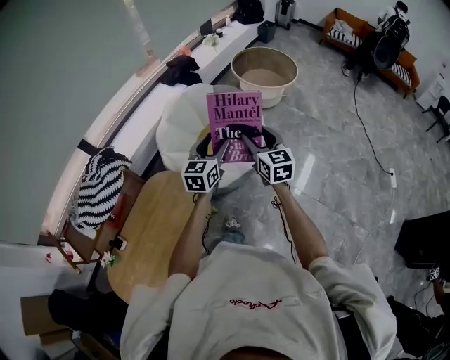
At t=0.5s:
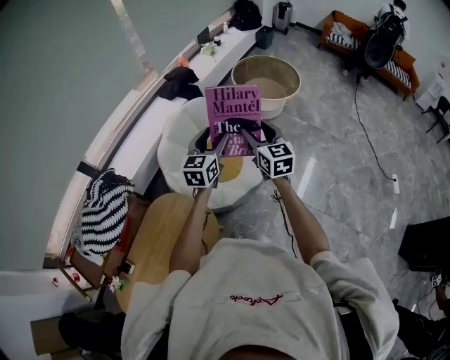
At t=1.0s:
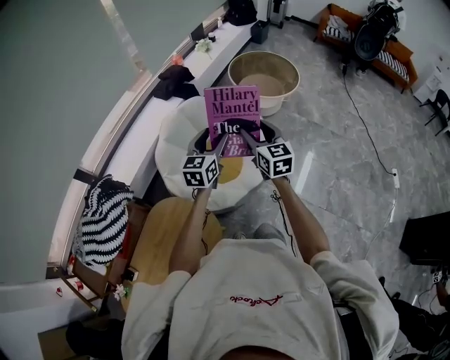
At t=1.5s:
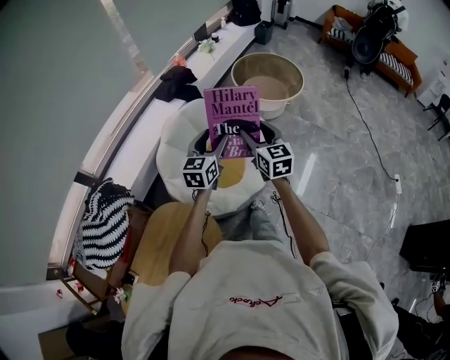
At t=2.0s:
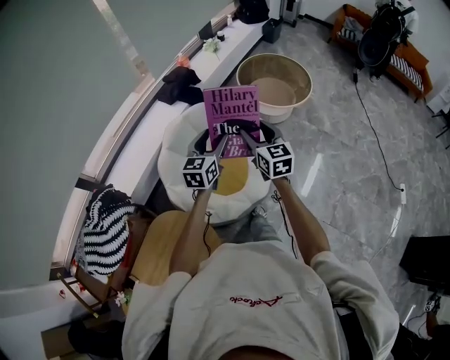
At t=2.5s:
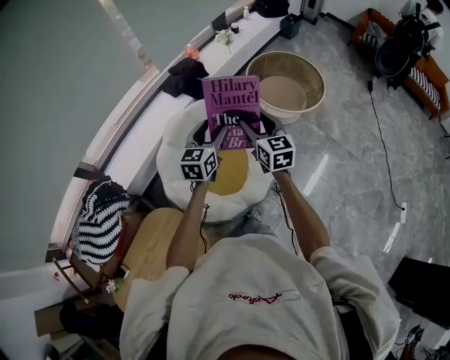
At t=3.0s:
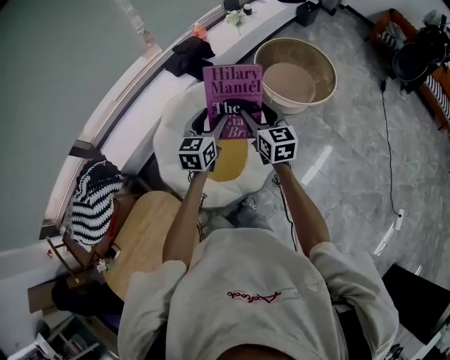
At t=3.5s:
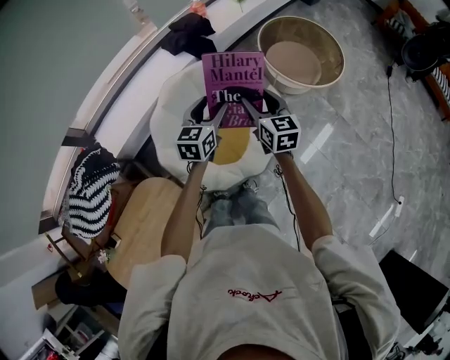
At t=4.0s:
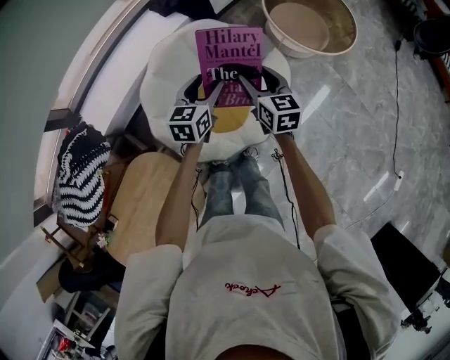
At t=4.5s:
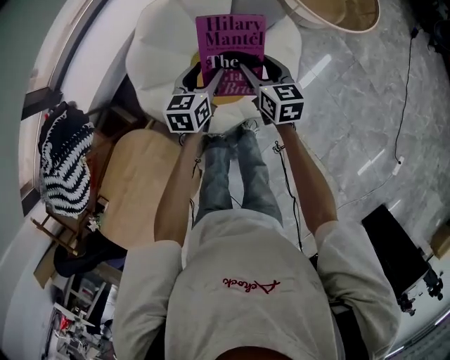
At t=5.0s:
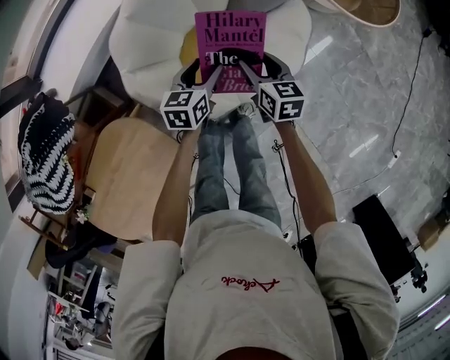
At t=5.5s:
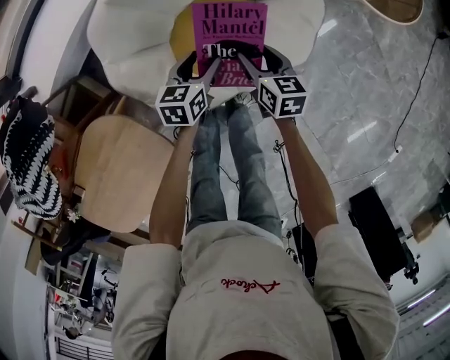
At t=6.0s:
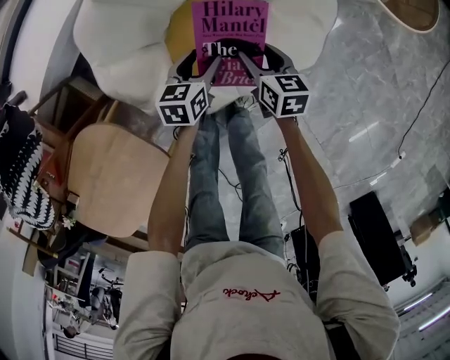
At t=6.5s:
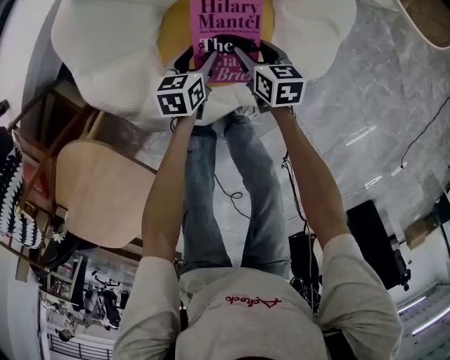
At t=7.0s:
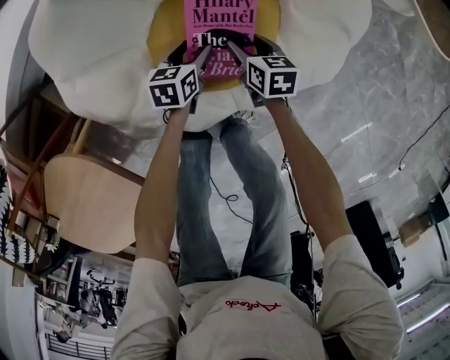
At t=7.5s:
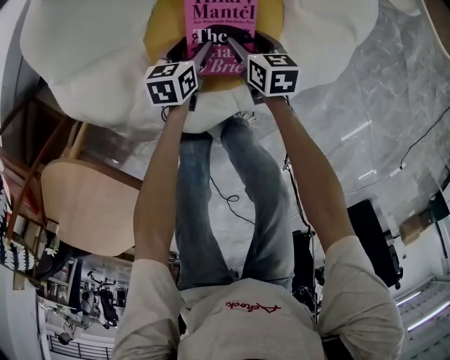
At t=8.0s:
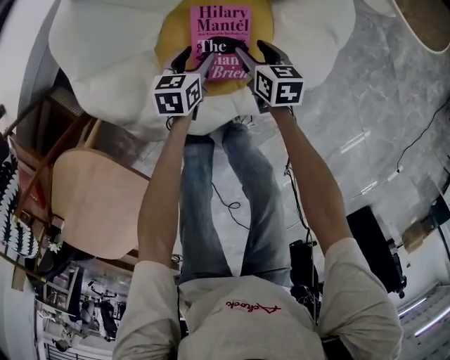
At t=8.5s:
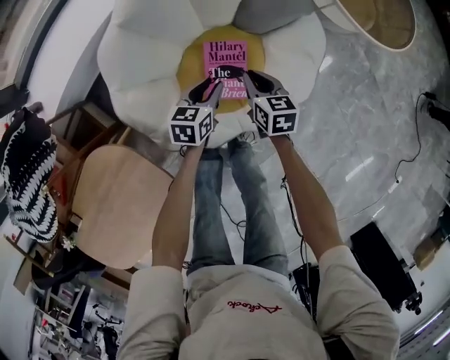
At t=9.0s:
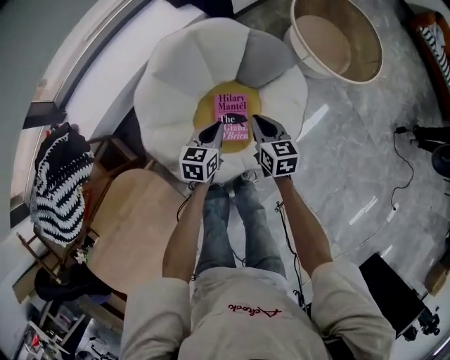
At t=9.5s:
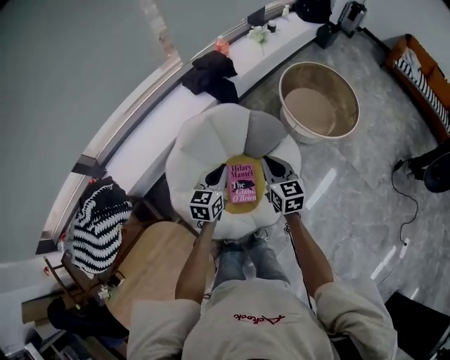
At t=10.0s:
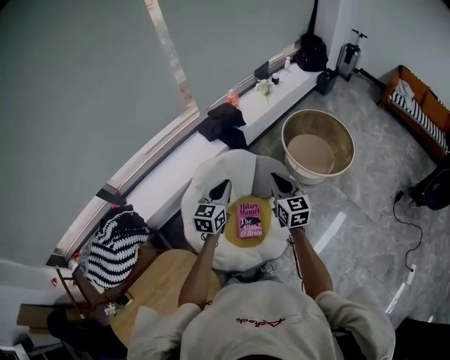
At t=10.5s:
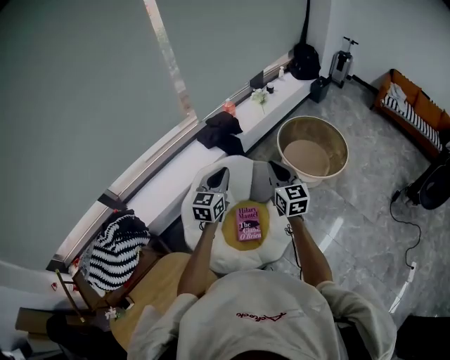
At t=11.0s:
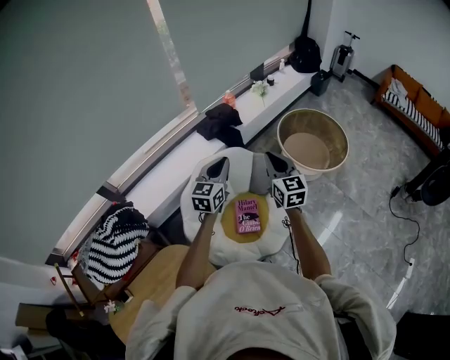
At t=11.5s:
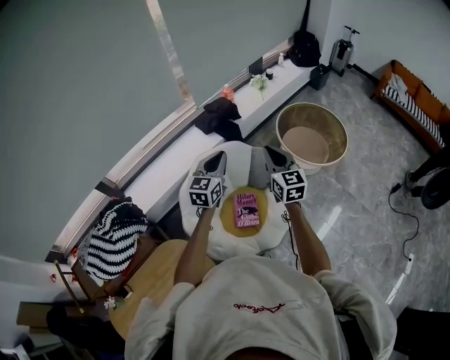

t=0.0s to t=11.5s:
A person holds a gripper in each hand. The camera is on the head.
t=0.0s to t=2.0s: Both grippers travel together forward, roughly 30 cm.
t=2.0s to t=4.0s: Both grippers move downward and forward, some 20 cm.
t=4.0s to t=6.0s: The two grippers go some 40 cm downward. The left gripper rotates roughly 30 degrees. Meanwhile the right gripper swivels approximately 30 degrees.
t=6.0s to t=7.5s: Both grippers move downward, approximately 20 cm.
t=7.5s to t=9.5s: Both grippers move upward, about 60 cm. The right gripper turns by approximately 40 degrees, and closes. The left gripper rotates about 40 degrees, and closes its fingers.
t=9.5s to t=11.5s: Both grippers travel together upward, approximately 20 cm.

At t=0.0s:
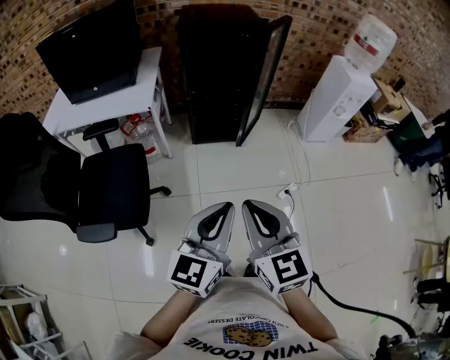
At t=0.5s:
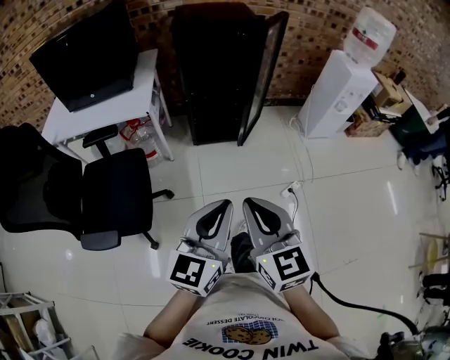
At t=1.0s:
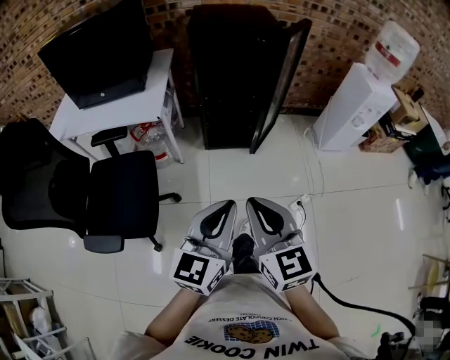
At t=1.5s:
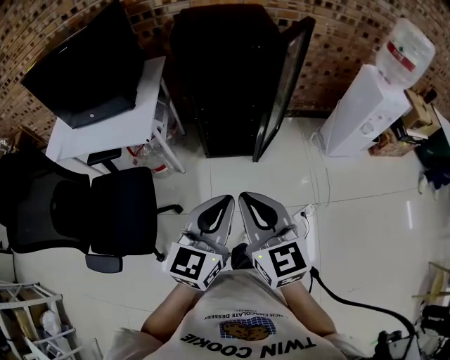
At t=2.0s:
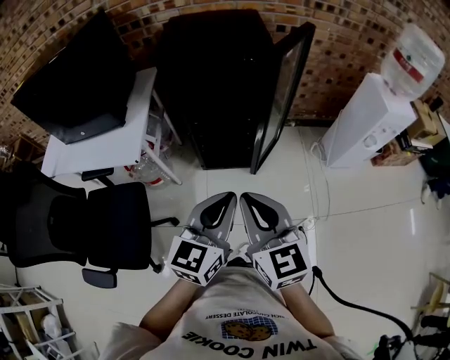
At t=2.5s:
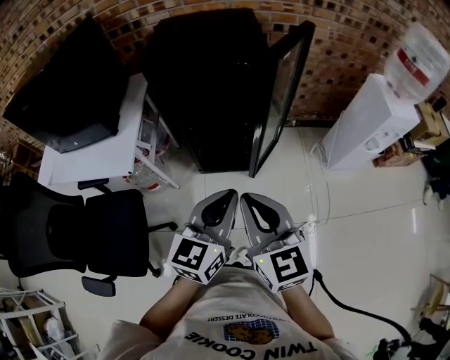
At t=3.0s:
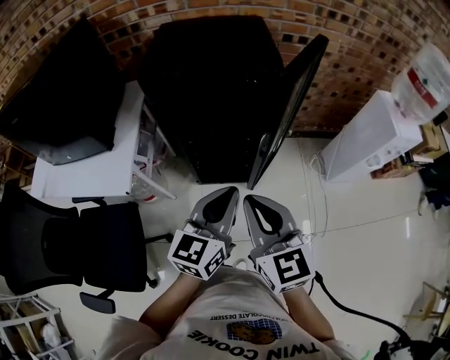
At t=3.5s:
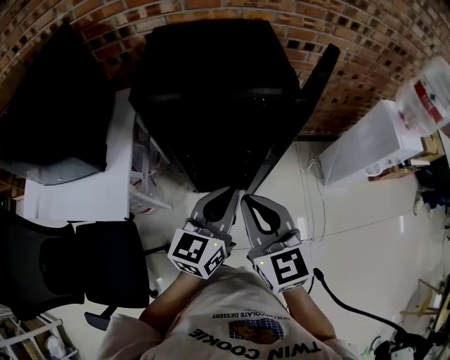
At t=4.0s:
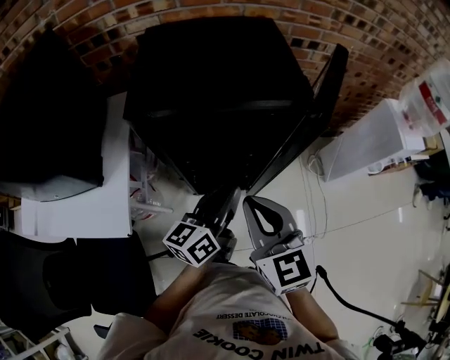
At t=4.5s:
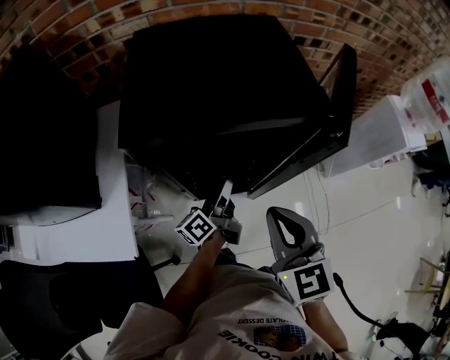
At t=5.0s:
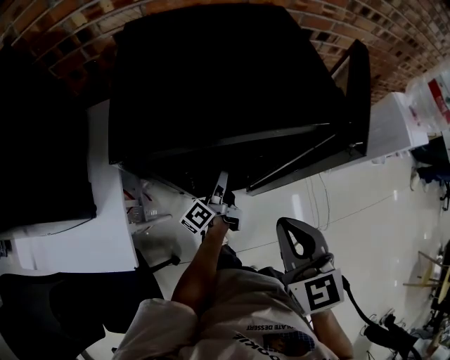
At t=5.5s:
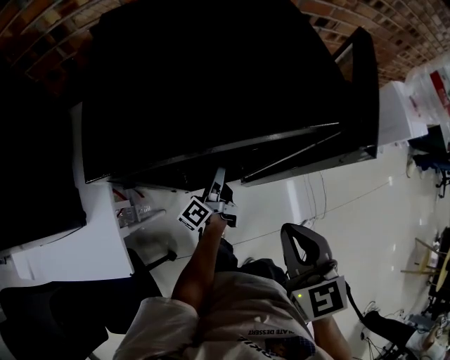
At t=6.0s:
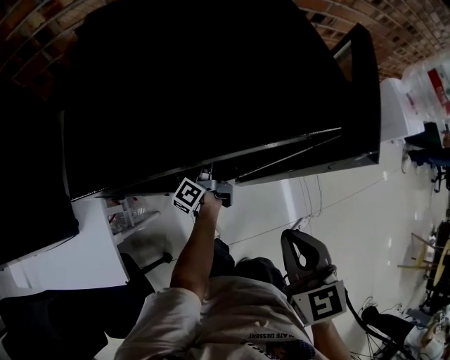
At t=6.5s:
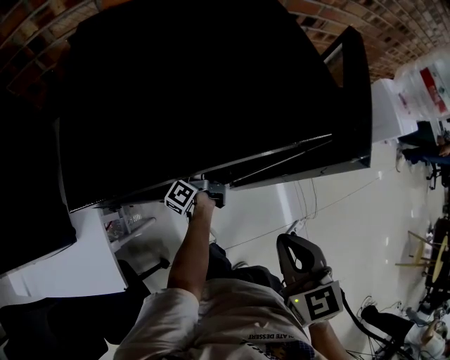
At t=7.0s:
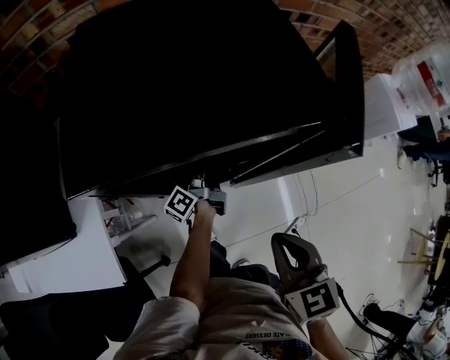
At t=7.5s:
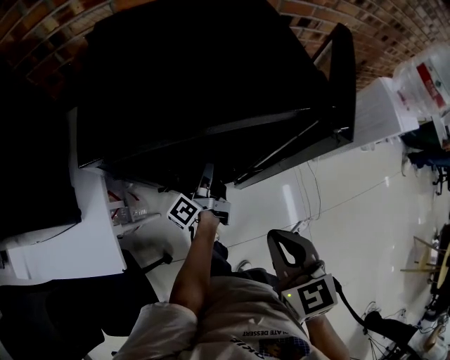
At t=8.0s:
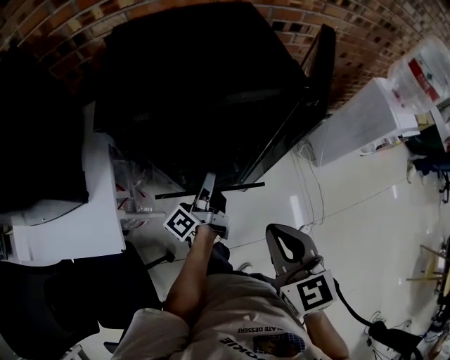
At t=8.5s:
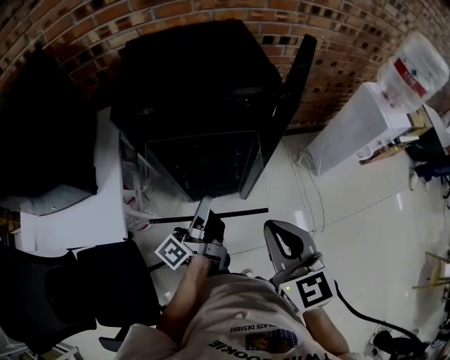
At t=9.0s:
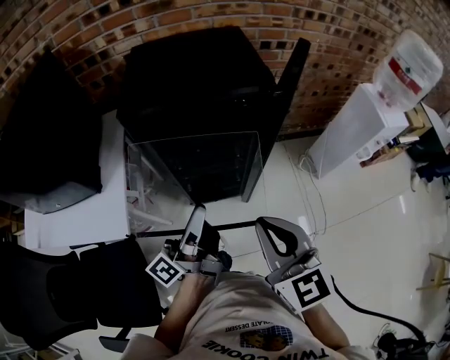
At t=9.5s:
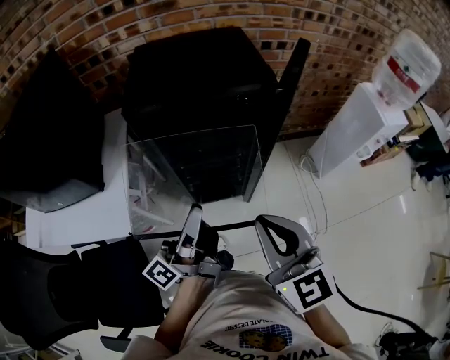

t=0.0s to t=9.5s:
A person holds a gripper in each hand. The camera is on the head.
t=0.0s to t=2.0s: The grippers both shift forward by about 30 cm.
t=2.0s to t=4.0s: The two grippers go about 25 cm forward. The left gripper turns by roughly 30 degrees.
t=4.0s to t=5.5s: The right gripper is displaced downward by some 5 cm. The left gripper is displaced downward and forward by approximately 25 cm, twists roughly 40 degrees counterclockwise, seen from behind, and opens its fingers.
t=5.5s to t=7.5s: The left gripper is displaced upward by roughly 5 cm, and closes its fingers.
t=7.5s to t=9.5s: The right gripper heads upward and backward, covering some 15 cm, and turns by roughly 20 degrees, while the left gripper travels backward and upward by some 35 cm, and rotates some 20 degrees.

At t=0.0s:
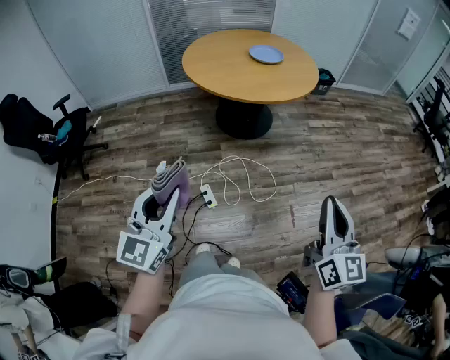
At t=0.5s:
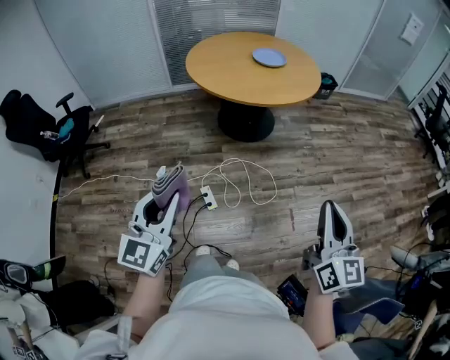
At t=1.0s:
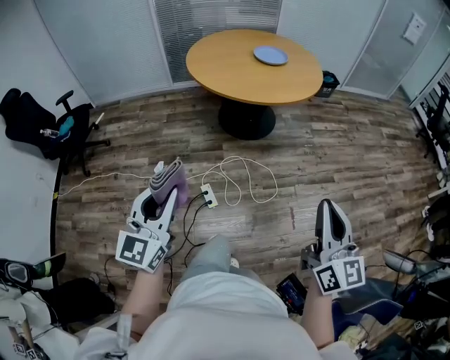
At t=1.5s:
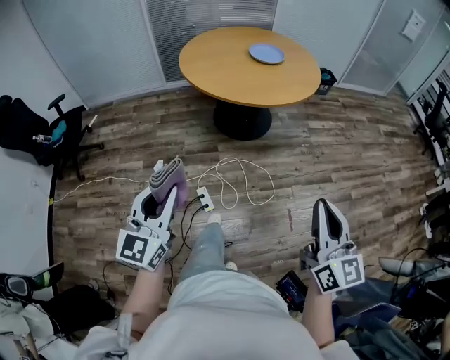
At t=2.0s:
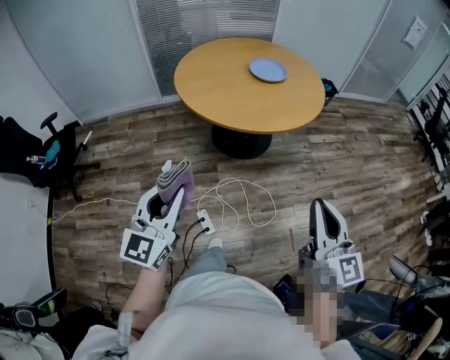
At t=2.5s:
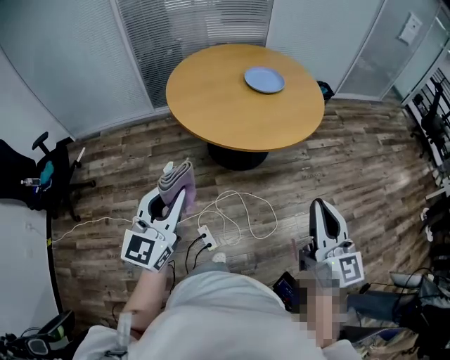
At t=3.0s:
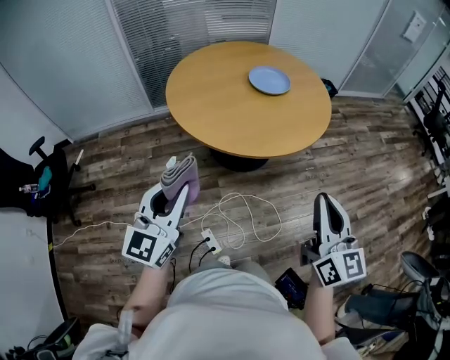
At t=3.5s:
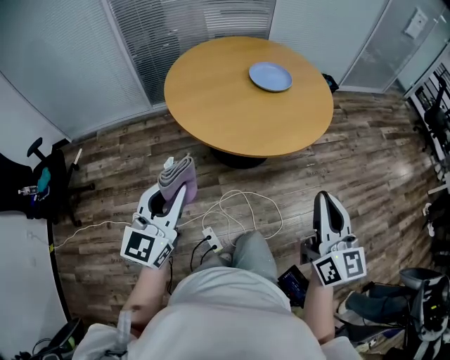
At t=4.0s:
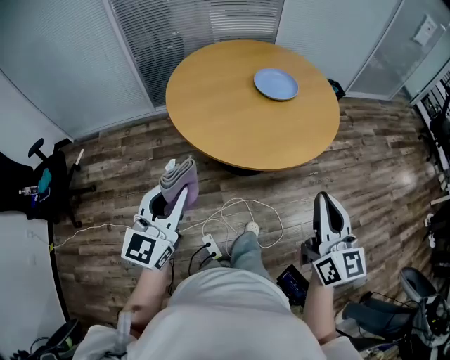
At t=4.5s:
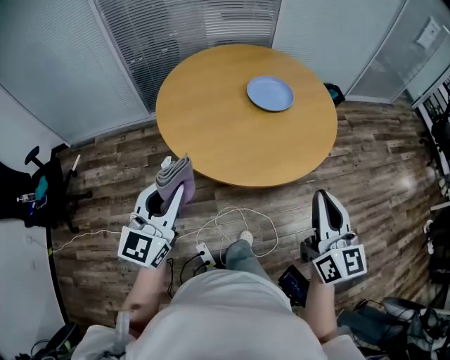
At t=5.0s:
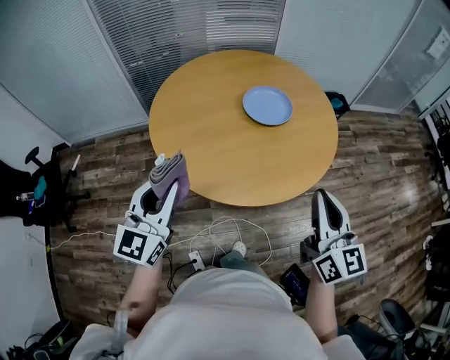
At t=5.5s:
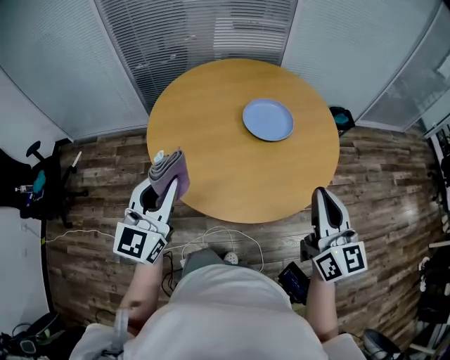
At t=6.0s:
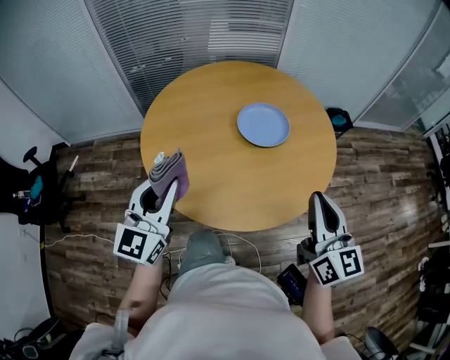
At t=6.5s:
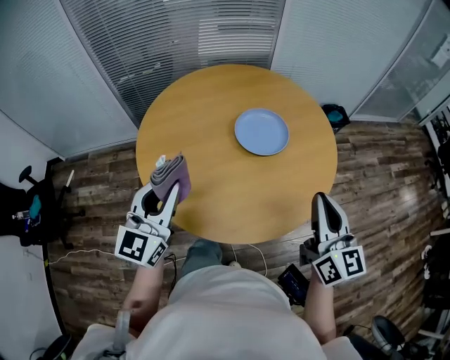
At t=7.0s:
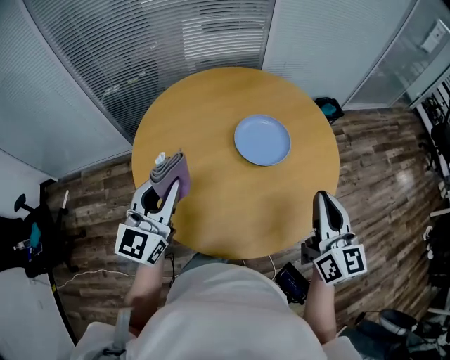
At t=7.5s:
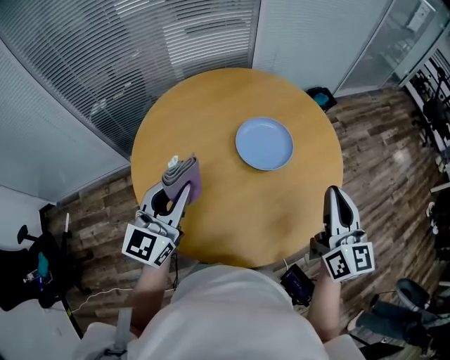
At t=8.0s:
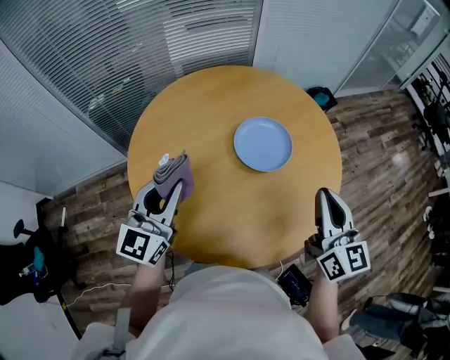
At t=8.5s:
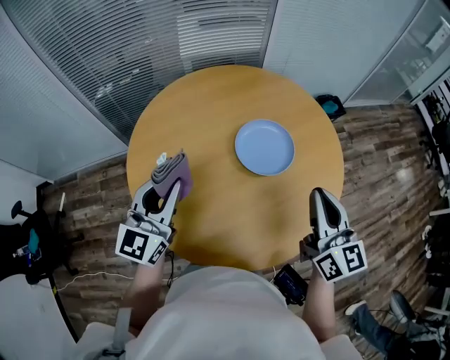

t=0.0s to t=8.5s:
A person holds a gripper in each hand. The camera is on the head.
t=0.0s to t=2.0s: Both grippers move forward, some 20 cm.
t=2.0s to t=4.0s: The grippers both shift forward by approximately 25 cm.
t=4.0s to t=6.5s: The two grippers go roughly 30 cm forward.
t=6.5s to t=8.5s: The right gripper moves forward and to the left, approximately 15 cm; the left gripper heads forward, covering some 15 cm.
